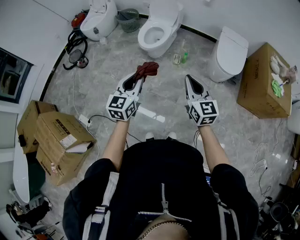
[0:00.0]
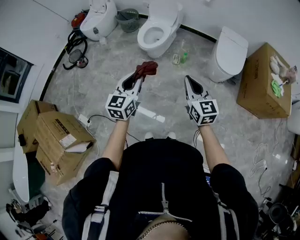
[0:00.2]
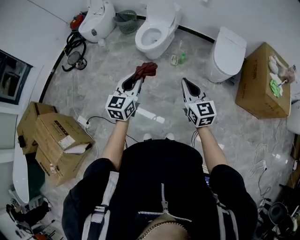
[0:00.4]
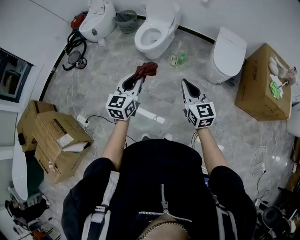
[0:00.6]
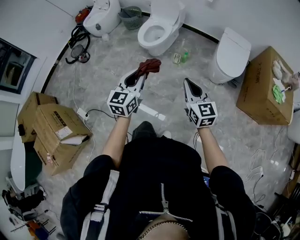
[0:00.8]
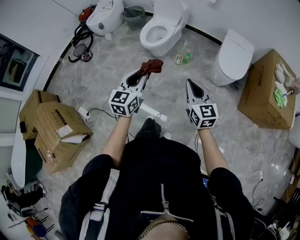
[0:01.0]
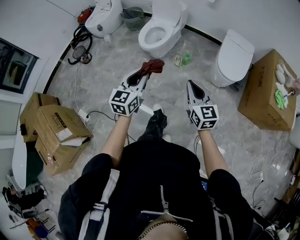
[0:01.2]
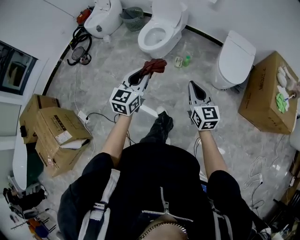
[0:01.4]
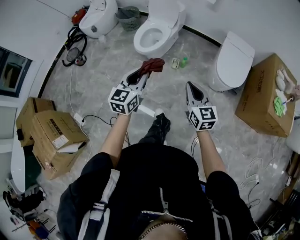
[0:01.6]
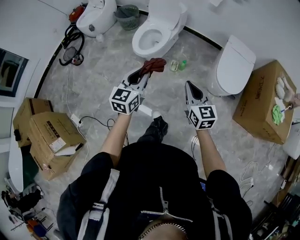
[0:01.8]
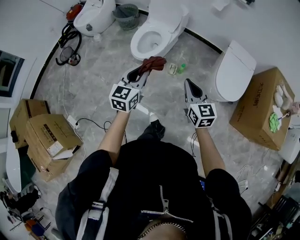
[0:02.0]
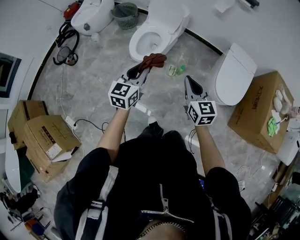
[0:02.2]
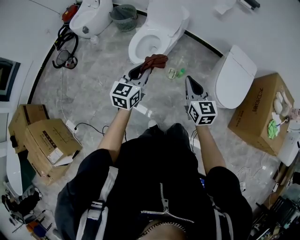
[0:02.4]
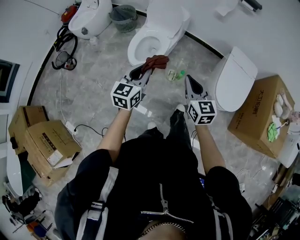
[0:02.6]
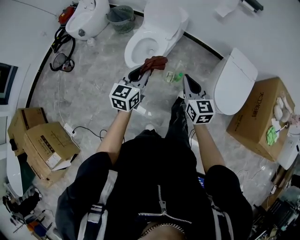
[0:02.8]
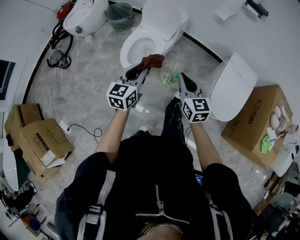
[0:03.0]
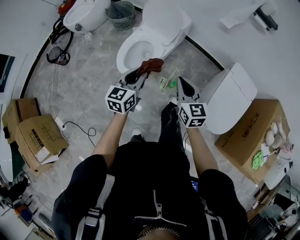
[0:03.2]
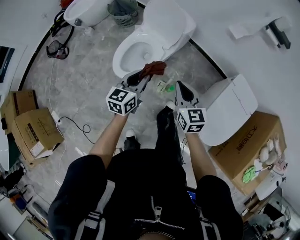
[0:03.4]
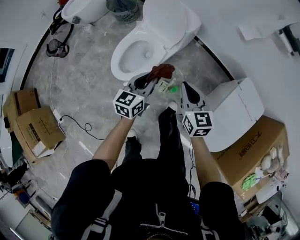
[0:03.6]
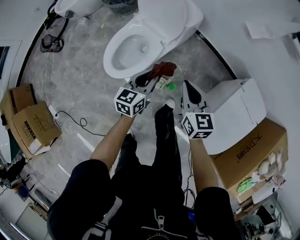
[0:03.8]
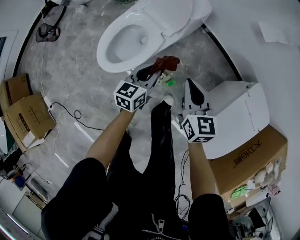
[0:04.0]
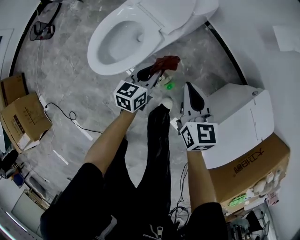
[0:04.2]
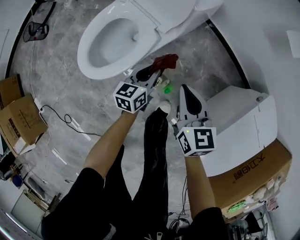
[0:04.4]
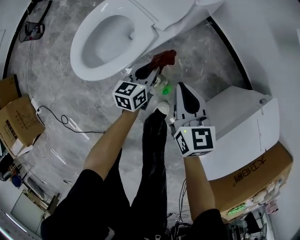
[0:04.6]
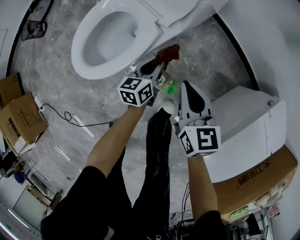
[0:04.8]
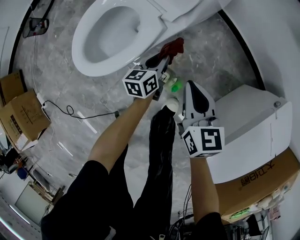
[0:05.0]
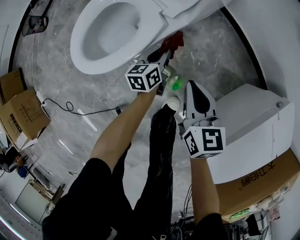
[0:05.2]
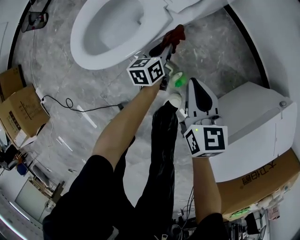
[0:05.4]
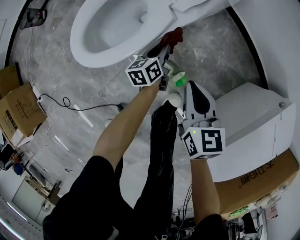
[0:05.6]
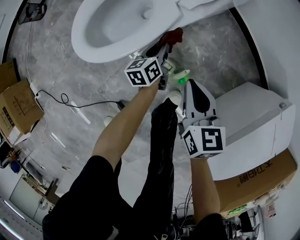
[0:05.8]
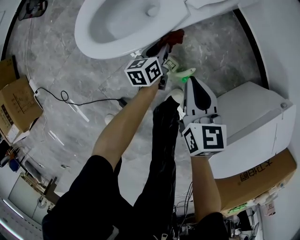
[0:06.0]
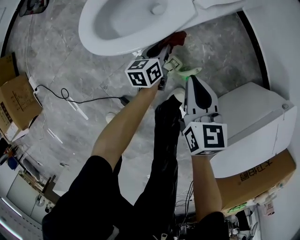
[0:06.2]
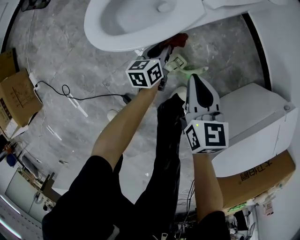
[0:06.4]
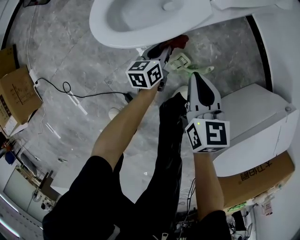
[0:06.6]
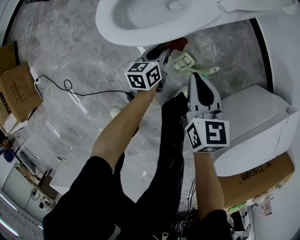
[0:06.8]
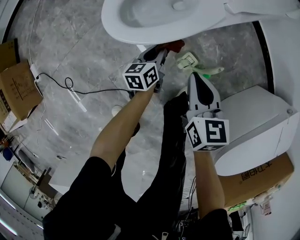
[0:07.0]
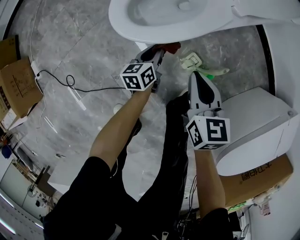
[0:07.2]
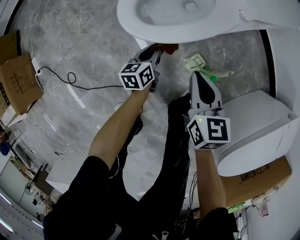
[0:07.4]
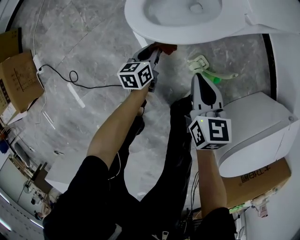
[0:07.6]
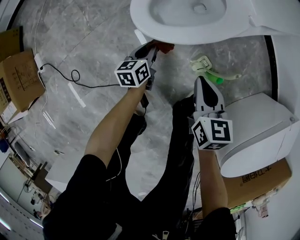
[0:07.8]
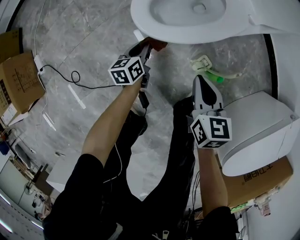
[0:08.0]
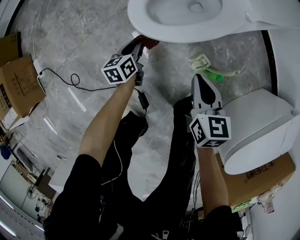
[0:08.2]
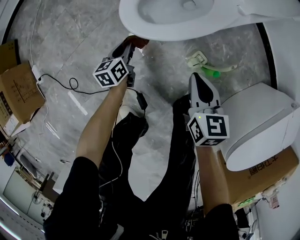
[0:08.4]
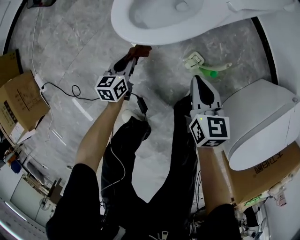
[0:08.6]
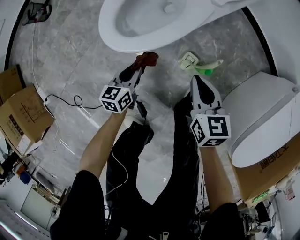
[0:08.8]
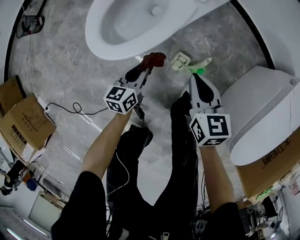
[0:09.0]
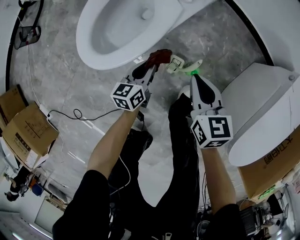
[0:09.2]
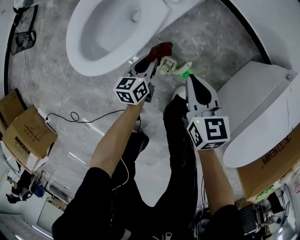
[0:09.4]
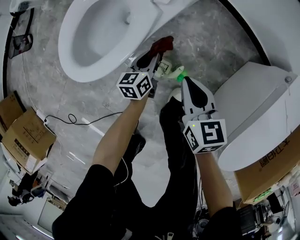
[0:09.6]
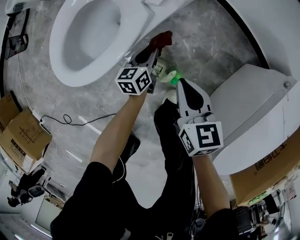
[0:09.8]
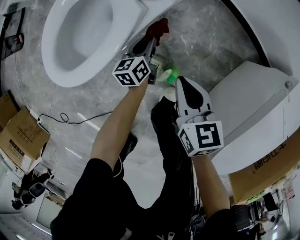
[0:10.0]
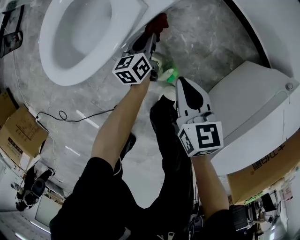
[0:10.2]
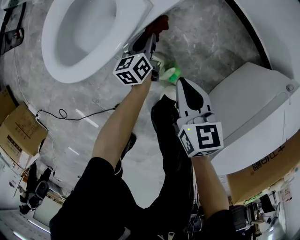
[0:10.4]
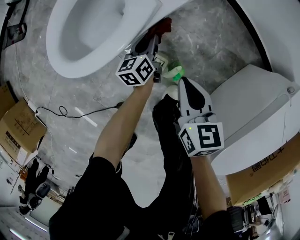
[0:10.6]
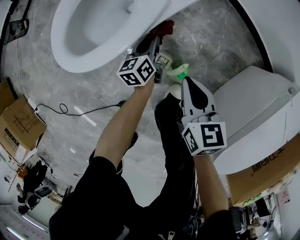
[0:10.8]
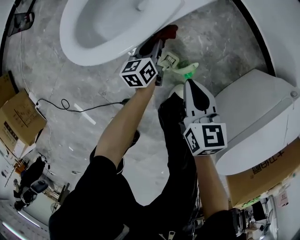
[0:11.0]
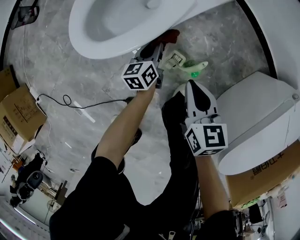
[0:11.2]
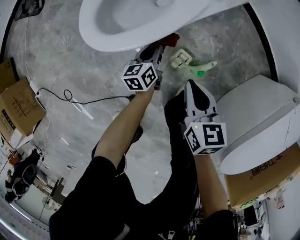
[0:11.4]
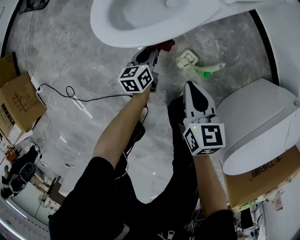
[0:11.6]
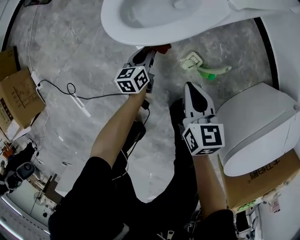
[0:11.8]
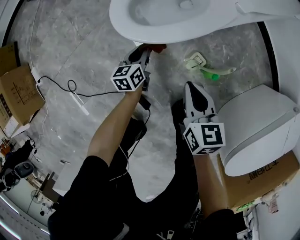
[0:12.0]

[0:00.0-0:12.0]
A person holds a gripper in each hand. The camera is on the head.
0:00.0 to 0:01.6: The left gripper moves forward and to the right, about 20 cm; the right gripper travels forward, to the right and downward by approximately 20 cm.
0:01.6 to 0:03.0: Both grippers move forward, roughly 40 cm.
0:03.0 to 0:04.4: Both grippers move downward and forward, roughly 50 cm. The left gripper swivels some 30 degrees.
0:04.4 to 0:06.0: Both grippers travel together downward and to the left, some 15 cm. The left gripper rotates about 30 degrees.
0:06.0 to 0:07.6: The two grippers go roughly 20 cm to the left.
0:07.6 to 0:09.0: Both grippers travel together to the right, roughly 10 cm. The left gripper swivels roughly 30 degrees.
0:09.0 to 0:10.4: The right gripper travels to the right and downward by some 15 cm, while the left gripper is displaced forward, to the right and downward by about 25 cm, and rotates some 20 degrees.
0:10.4 to 0:12.0: The right gripper travels to the left by some 20 cm; the left gripper heads to the left and backward, covering approximately 35 cm.

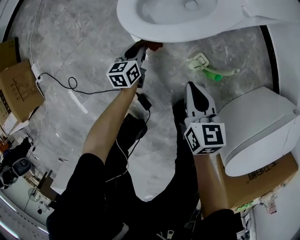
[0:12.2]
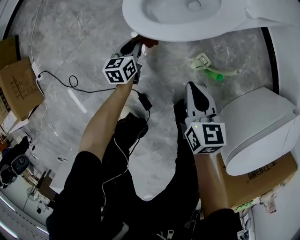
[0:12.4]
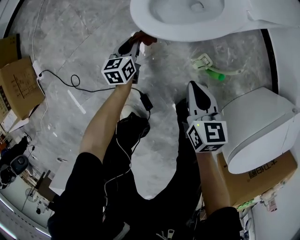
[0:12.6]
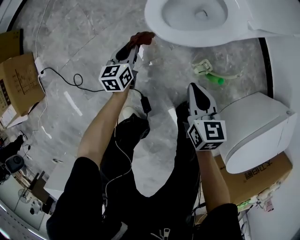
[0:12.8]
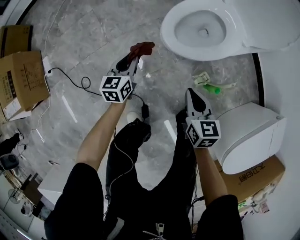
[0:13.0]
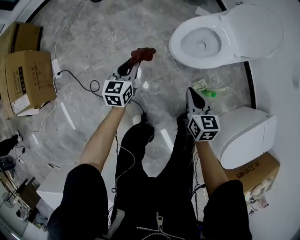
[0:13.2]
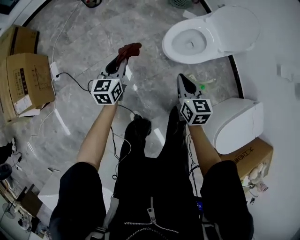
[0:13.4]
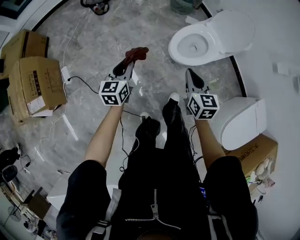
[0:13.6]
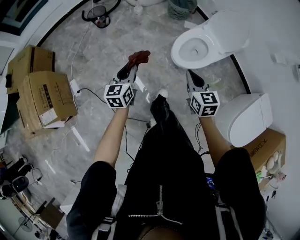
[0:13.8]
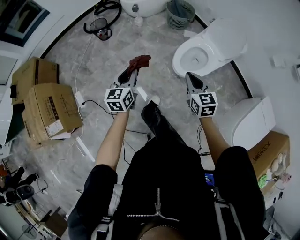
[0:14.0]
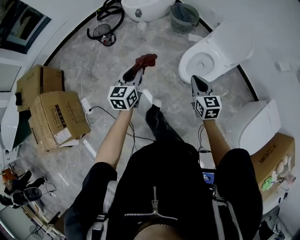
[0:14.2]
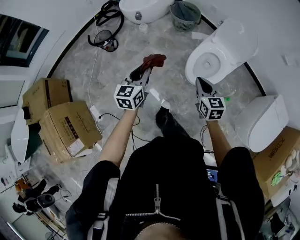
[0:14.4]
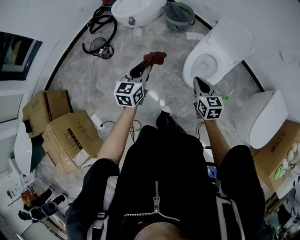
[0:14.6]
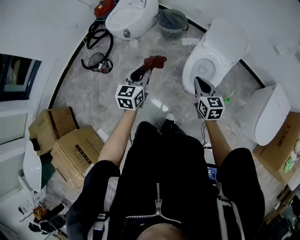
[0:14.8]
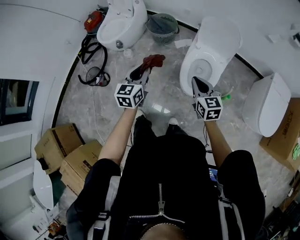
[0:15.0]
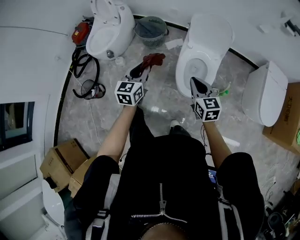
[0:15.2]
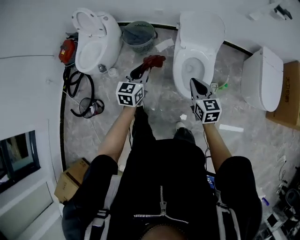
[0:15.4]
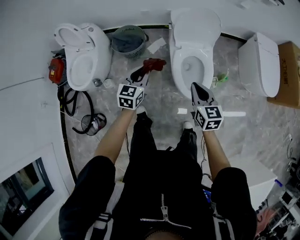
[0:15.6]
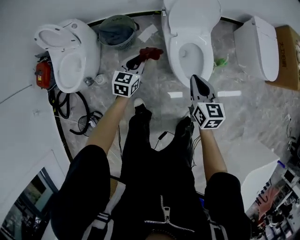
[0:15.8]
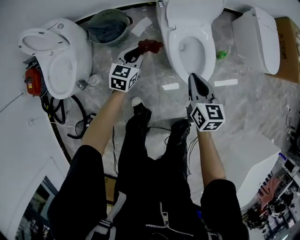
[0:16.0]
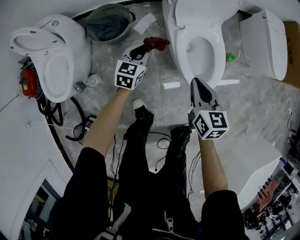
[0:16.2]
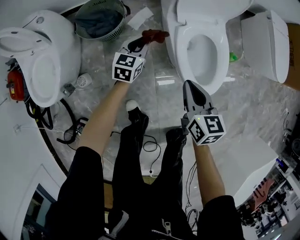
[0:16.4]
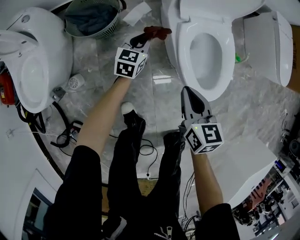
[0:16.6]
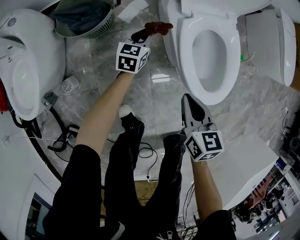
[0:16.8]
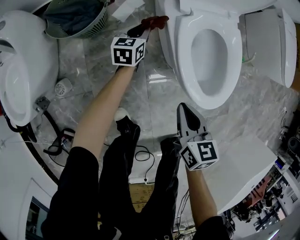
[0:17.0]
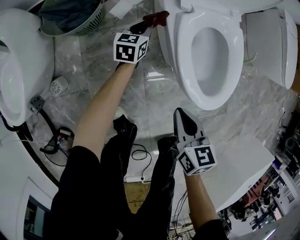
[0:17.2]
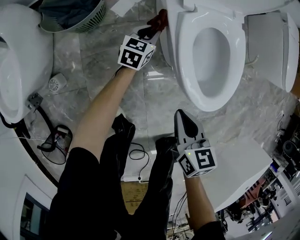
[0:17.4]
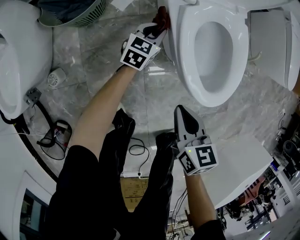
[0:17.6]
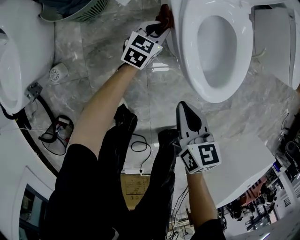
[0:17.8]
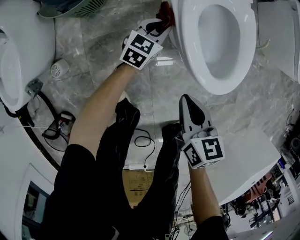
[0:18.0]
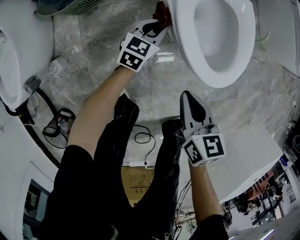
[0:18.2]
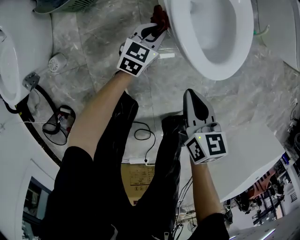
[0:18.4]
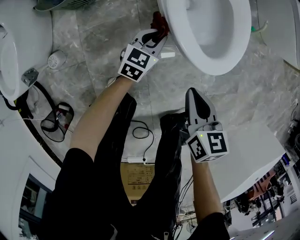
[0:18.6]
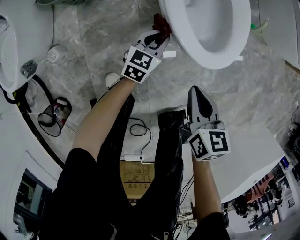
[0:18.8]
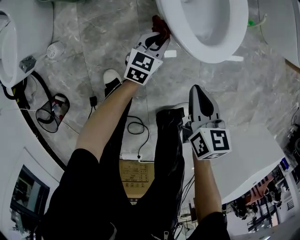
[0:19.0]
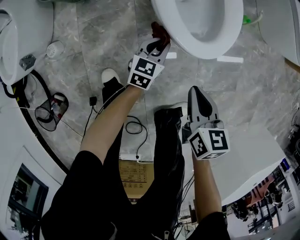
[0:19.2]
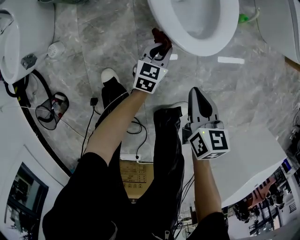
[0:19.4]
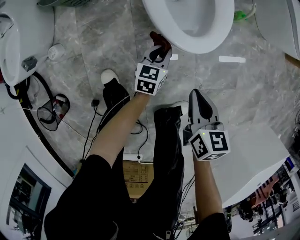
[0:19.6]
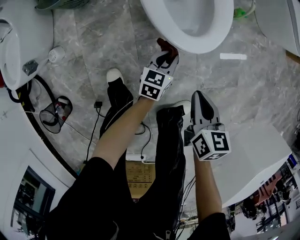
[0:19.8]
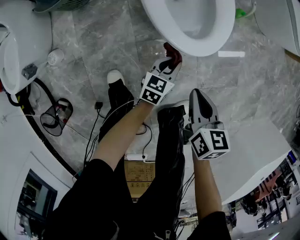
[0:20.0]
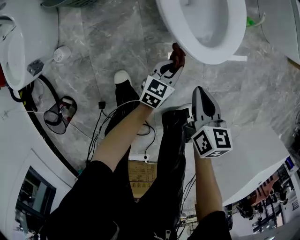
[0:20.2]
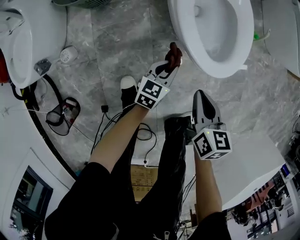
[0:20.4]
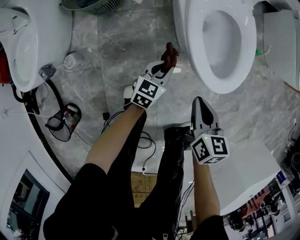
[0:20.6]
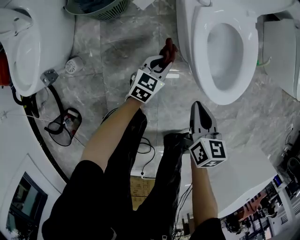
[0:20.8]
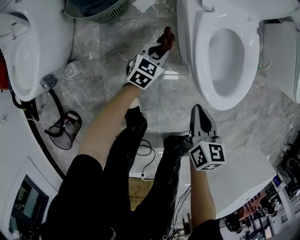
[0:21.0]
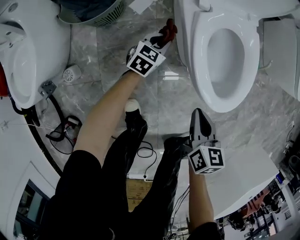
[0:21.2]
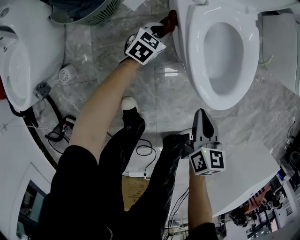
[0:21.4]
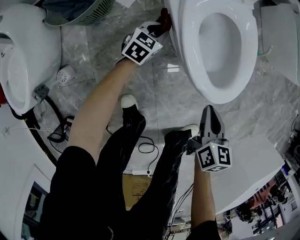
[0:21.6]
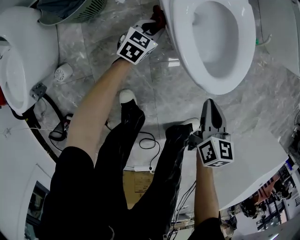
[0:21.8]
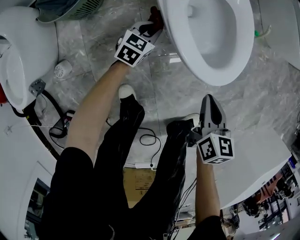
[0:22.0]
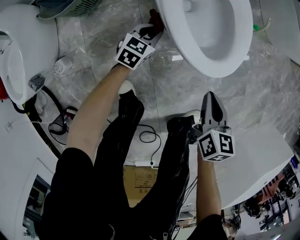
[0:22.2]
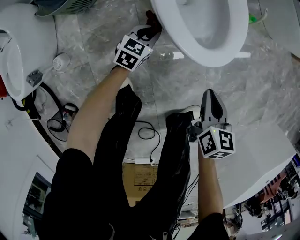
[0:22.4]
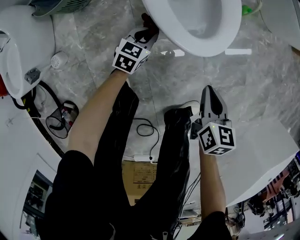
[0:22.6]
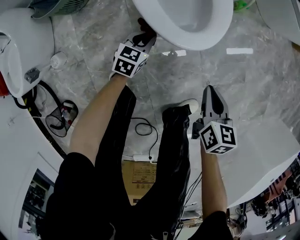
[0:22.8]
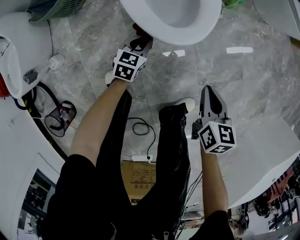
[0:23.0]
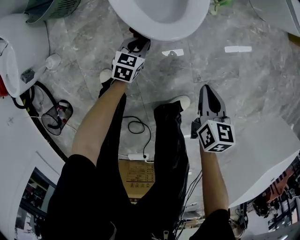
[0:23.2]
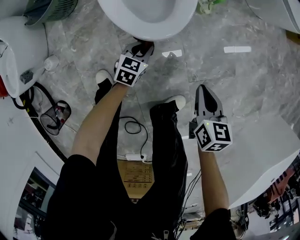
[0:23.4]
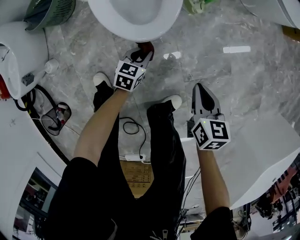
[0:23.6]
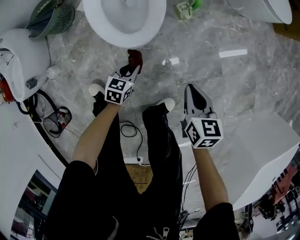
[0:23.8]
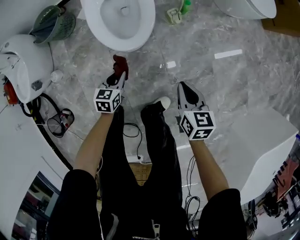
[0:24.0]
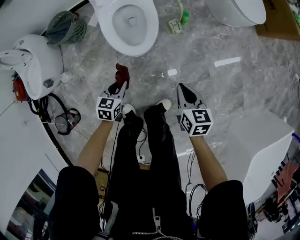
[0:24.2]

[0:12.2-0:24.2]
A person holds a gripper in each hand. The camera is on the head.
0:12.2 to 0:13.8: The grippers both shift upward and to the left by some 60 cm. The right gripper turns by about 20 degrees. The left gripper turns by roughly 20 degrees.
0:13.8 to 0:15.2: The left gripper shifts by approximately 40 cm, and turns by roughly 40 degrees; the right gripper shifts by some 25 cm, and swivels about 30 degrees.
0:15.2 to 0:16.6: The left gripper travels downward by approximately 50 cm, and rotates approximately 40 degrees. Meanwhile the right gripper travels downward by roughly 30 cm, and turns by approximately 40 degrees.
0:16.6 to 0:18.2: The left gripper heads to the right, downward and backward, covering roughly 20 cm. The right gripper heads downward, backward and to the right, covering about 15 cm.
0:18.2 to 0:19.8: The two grippers go about 25 cm to the right and backward.
0:19.8 to 0:21.2: The right gripper moves to the left and forward, roughly 25 cm. The left gripper is displaced to the left and forward by approximately 35 cm.
0:21.2 to 0:22.6: The right gripper shifts roughly 20 cm to the right. The left gripper moves to the right and backward, about 20 cm.
0:22.6 to 0:24.2: The right gripper travels upward and to the right by roughly 30 cm. The left gripper is displaced upward, to the right and backward by about 35 cm.
